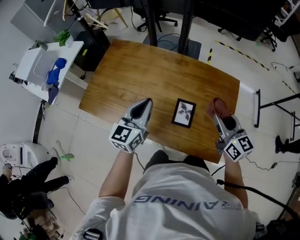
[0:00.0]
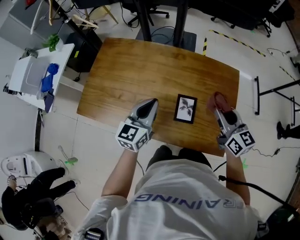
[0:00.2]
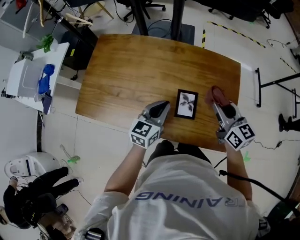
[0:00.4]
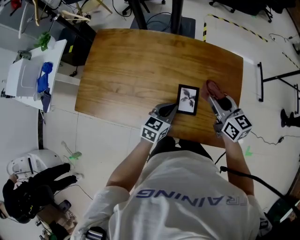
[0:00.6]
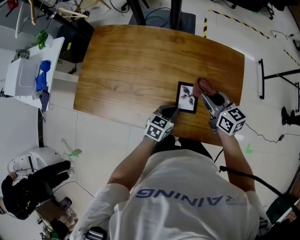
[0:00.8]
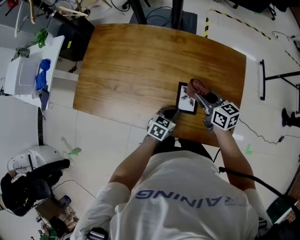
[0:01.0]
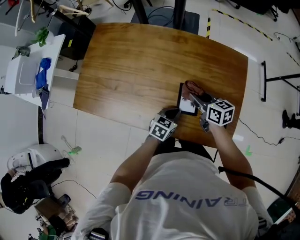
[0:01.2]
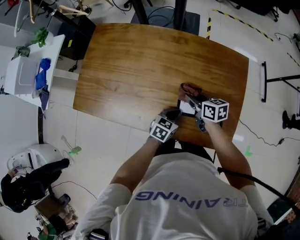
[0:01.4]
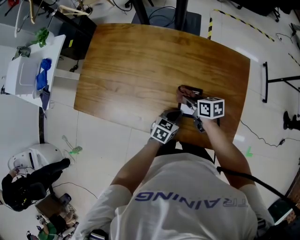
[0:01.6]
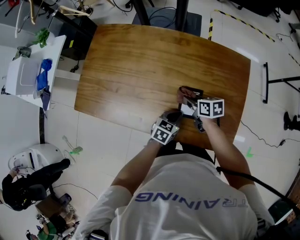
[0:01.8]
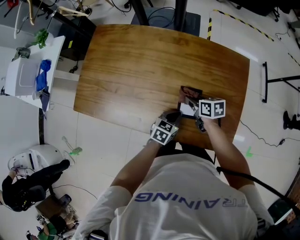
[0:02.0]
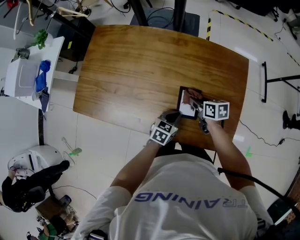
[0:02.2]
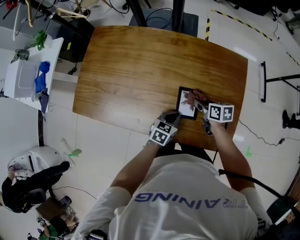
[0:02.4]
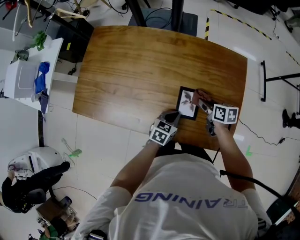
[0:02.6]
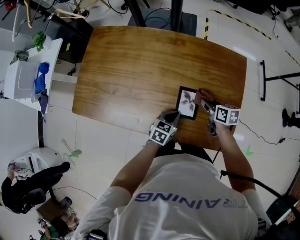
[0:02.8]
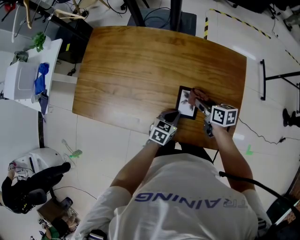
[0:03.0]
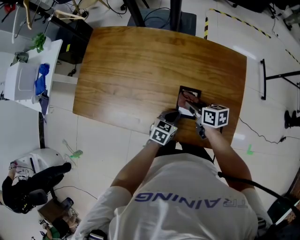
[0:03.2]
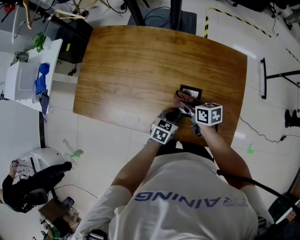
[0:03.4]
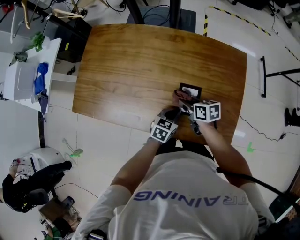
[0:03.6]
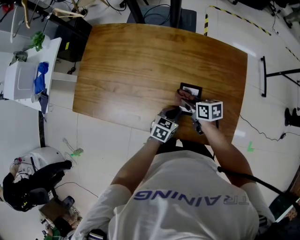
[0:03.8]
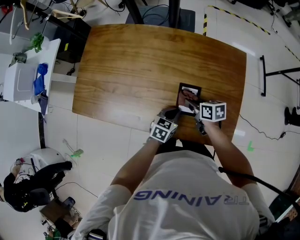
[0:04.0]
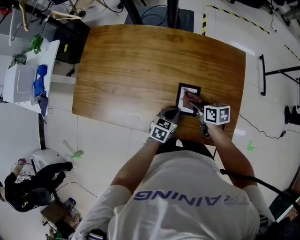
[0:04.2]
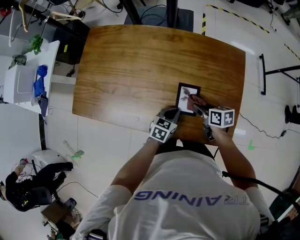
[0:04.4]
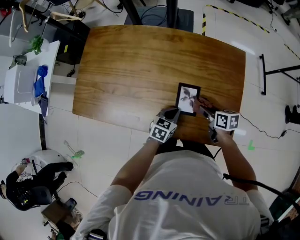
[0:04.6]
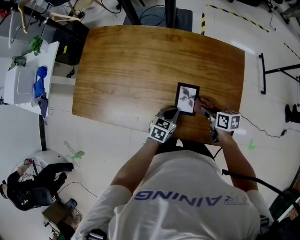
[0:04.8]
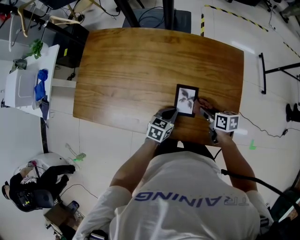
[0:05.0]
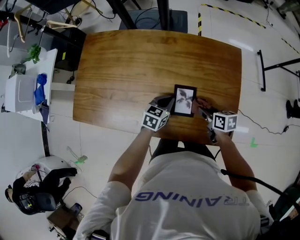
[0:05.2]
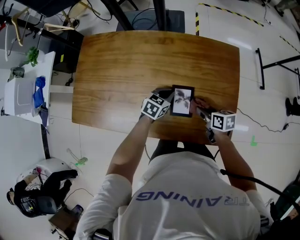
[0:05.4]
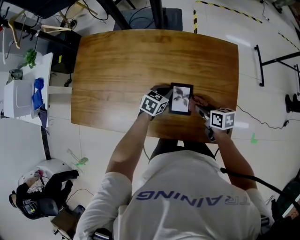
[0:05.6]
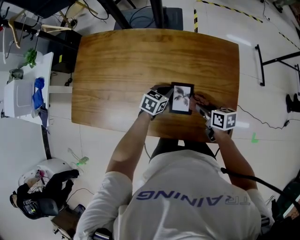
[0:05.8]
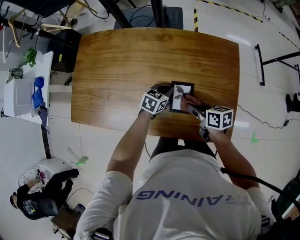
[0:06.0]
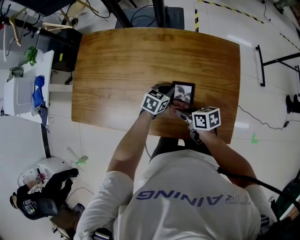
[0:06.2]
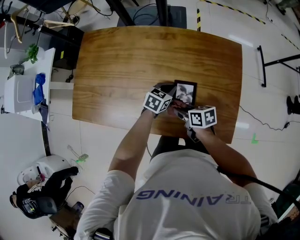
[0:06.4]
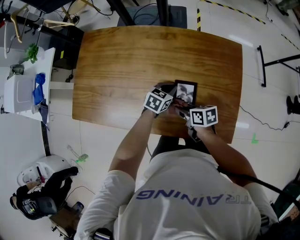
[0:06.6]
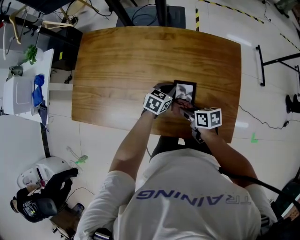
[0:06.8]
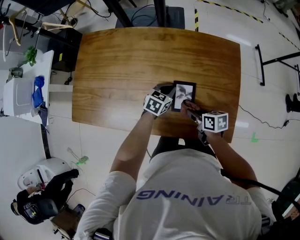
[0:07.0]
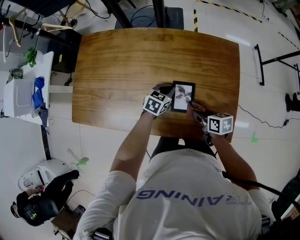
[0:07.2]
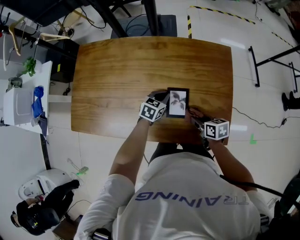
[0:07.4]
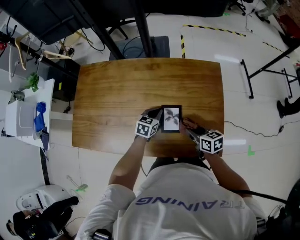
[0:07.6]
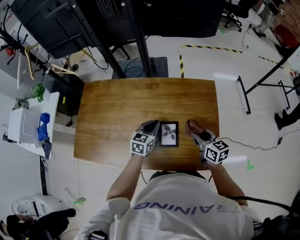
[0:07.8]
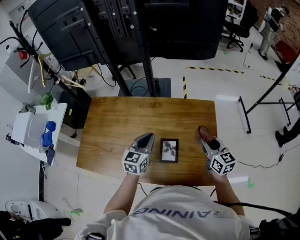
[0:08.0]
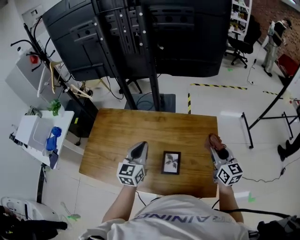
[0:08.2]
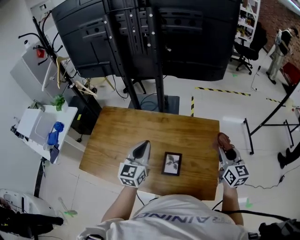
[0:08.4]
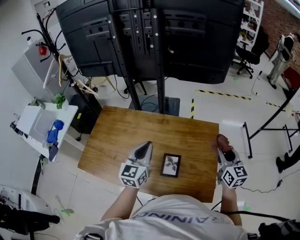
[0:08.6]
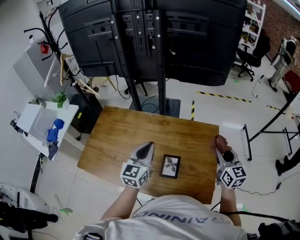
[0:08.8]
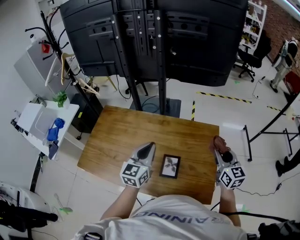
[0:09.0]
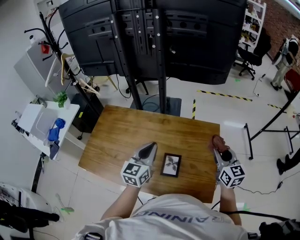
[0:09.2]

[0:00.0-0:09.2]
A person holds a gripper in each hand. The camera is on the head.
0:00.0 to 0:01.6: The right gripper shifts roughly 25 cm downward and to the left, and rotates about 40 degrees, while the left gripper heads downward and to the right, covering about 30 cm, and angles its fingers downward, by some 30 degrees.
0:01.6 to 0:03.0: The right gripper goes roughly 5 cm to the right.
0:03.0 to 0:04.6: The right gripper is displaced backward by approximately 5 cm, and travels to the left and back again, about 10 cm each way.
0:04.6 to 0:06.2: The right gripper moves to the left, roughly 10 cm. The left gripper heads forward, covering some 10 cm.
0:06.2 to 0:07.6: The right gripper is displaced to the right by approximately 10 cm.
0:07.6 to 0:09.2: The left gripper heads upward, covering some 30 cm, and tips its fingers upward by some 30 degrees. The right gripper moves upward and to the right, about 25 cm, and changes its angle by some 40 degrees.

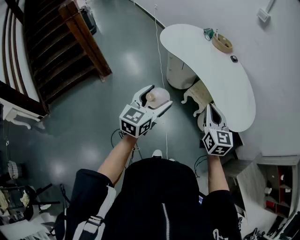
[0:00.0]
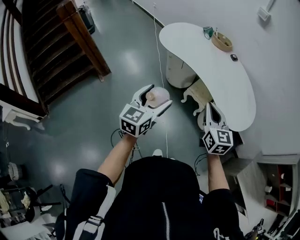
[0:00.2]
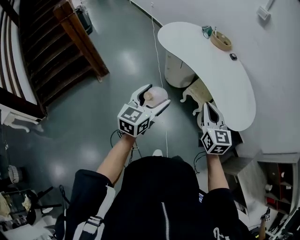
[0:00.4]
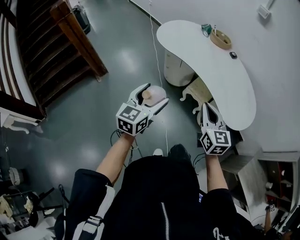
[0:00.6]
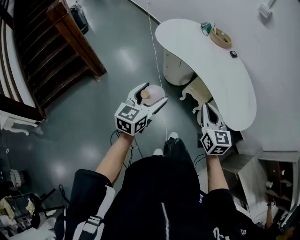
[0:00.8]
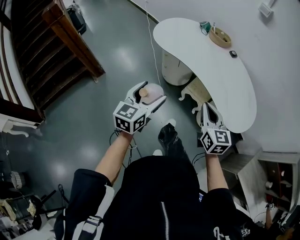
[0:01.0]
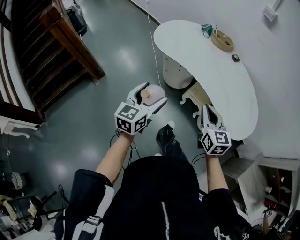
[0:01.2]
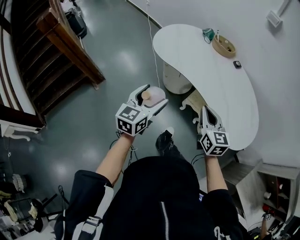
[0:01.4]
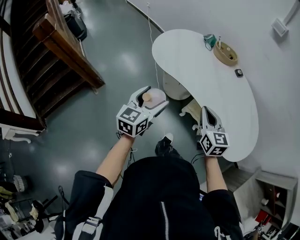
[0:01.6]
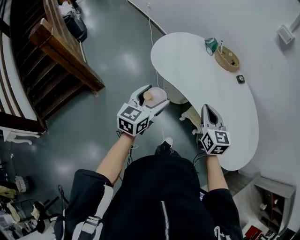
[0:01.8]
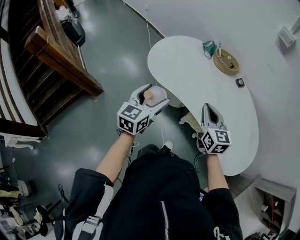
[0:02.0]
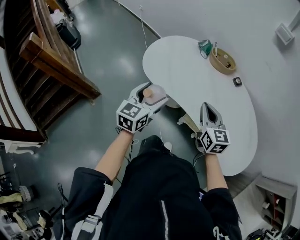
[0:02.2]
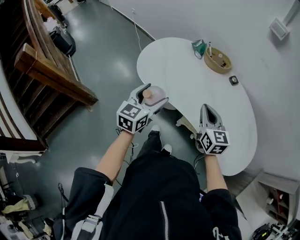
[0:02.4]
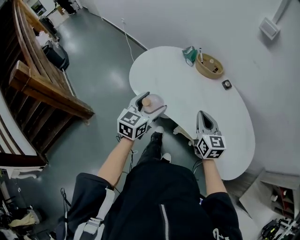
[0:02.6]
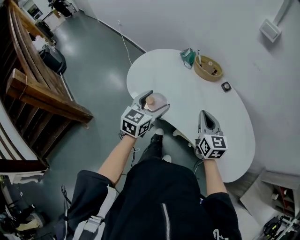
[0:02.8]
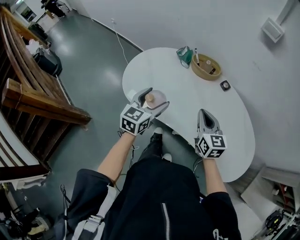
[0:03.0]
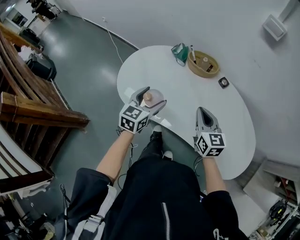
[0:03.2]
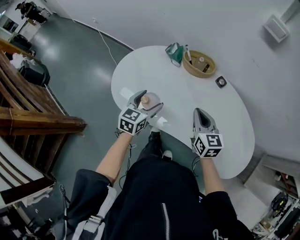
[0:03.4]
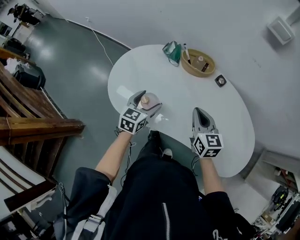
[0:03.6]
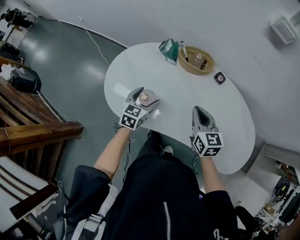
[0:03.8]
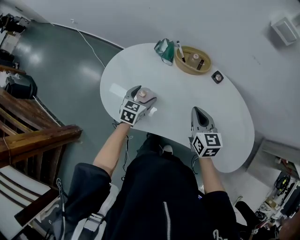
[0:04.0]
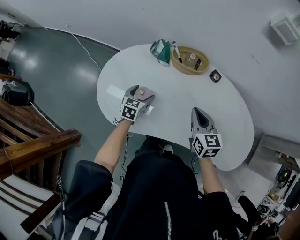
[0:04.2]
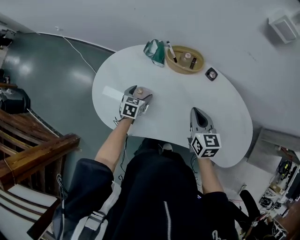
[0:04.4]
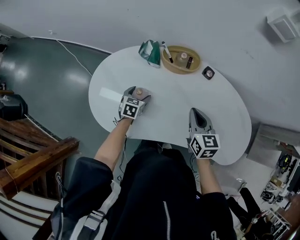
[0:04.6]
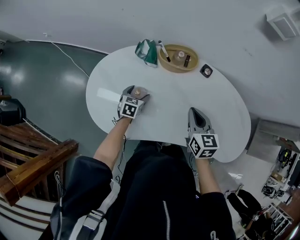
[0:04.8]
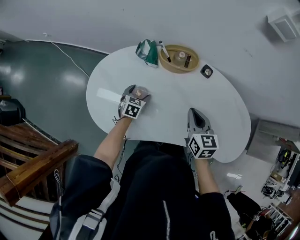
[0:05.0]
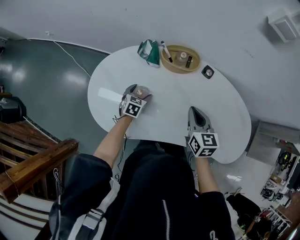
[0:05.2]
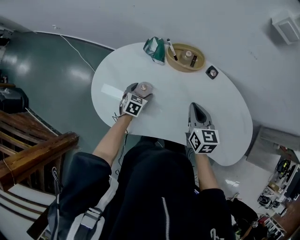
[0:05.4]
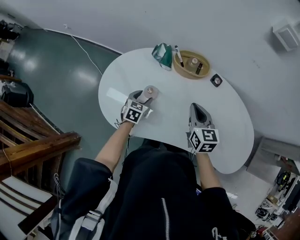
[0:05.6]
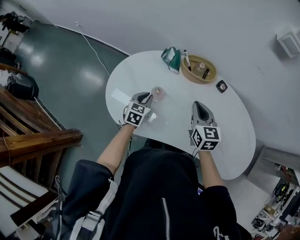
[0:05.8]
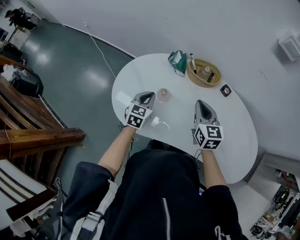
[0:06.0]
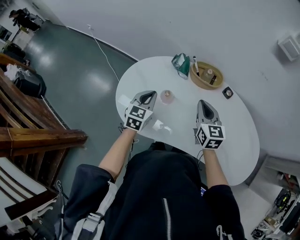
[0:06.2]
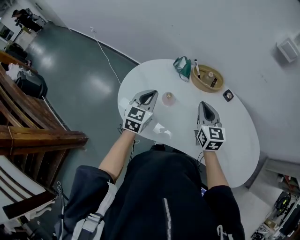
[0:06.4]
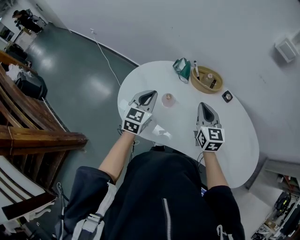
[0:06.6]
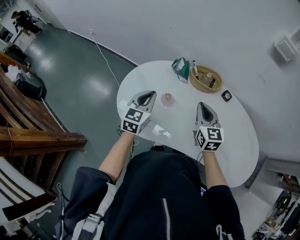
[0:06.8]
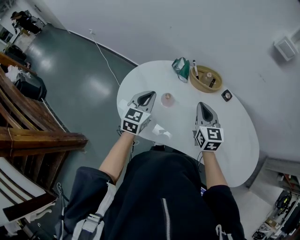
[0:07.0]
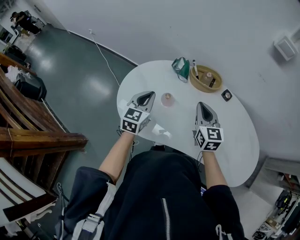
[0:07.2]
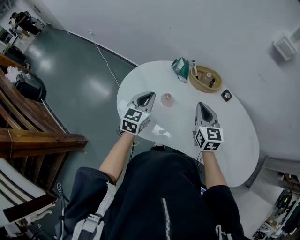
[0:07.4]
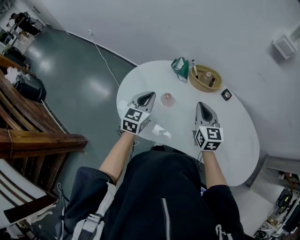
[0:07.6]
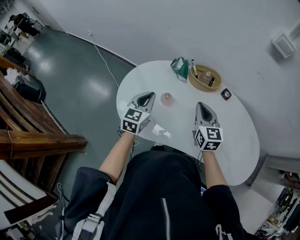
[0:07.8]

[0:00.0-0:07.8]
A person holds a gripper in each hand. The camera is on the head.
0:00.0 to 0:01.6: Both grippers move forward, roughly 25 cm.
0:01.6 to 0:03.2: Both grippers move forward, some 30 cm. The left gripper rotates some 20 degrees.
0:03.2 to 0:04.6: The right gripper goes about 10 cm forward and downward, and changes its angle by roughly 20 degrees; the left gripper heads downward and forward, covering some 30 cm, and changes its angle by about 30 degrees.
0:04.6 to 0:06.2: The left gripper heads upward, covering about 20 cm, swivels roughly 20 degrees, and closes its fingers. The right gripper is displaced to the left by roughly 10 cm.
0:06.2 to 0:07.8: The grippers move only a little.

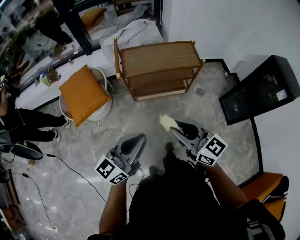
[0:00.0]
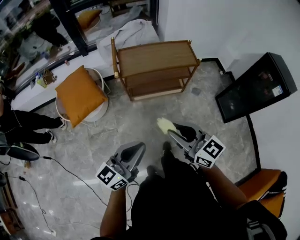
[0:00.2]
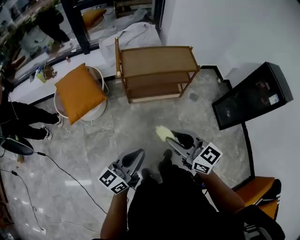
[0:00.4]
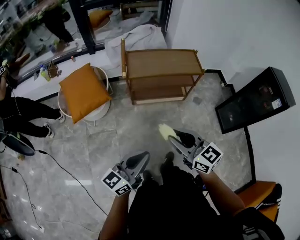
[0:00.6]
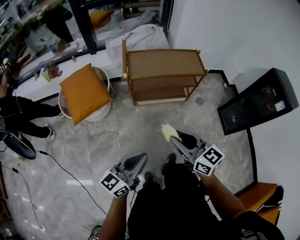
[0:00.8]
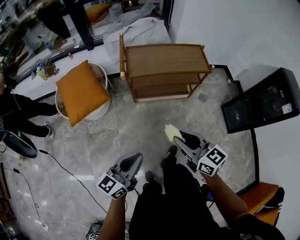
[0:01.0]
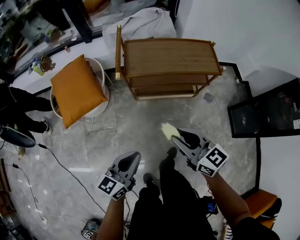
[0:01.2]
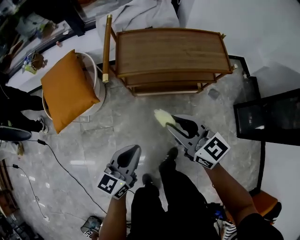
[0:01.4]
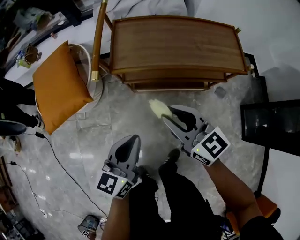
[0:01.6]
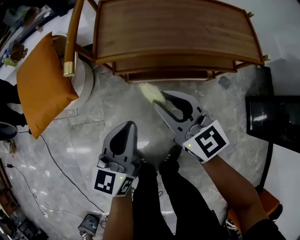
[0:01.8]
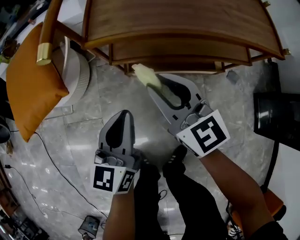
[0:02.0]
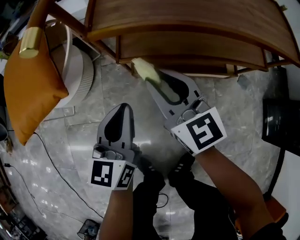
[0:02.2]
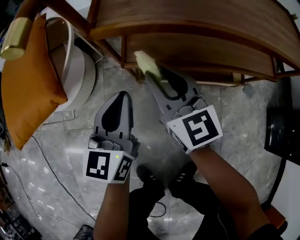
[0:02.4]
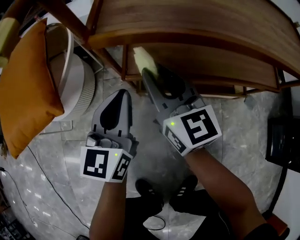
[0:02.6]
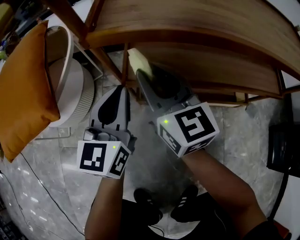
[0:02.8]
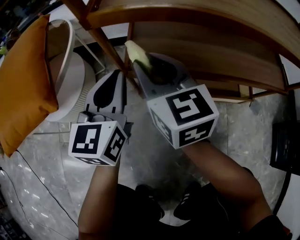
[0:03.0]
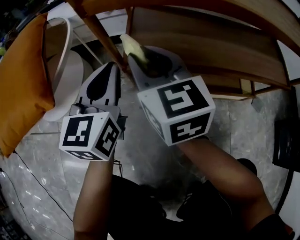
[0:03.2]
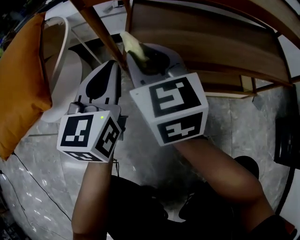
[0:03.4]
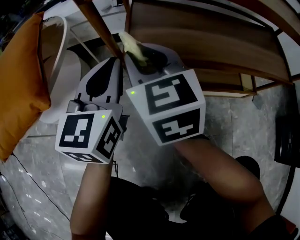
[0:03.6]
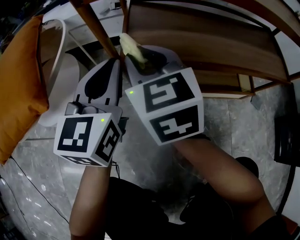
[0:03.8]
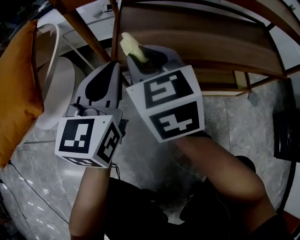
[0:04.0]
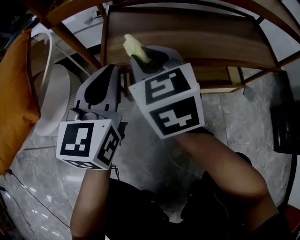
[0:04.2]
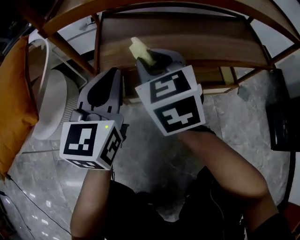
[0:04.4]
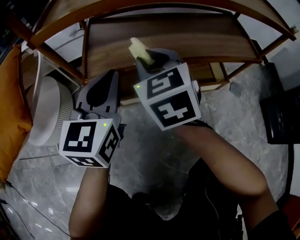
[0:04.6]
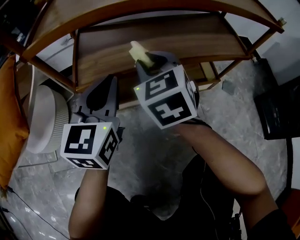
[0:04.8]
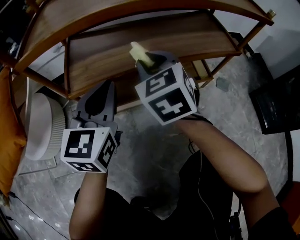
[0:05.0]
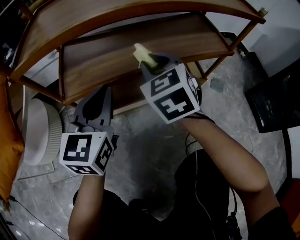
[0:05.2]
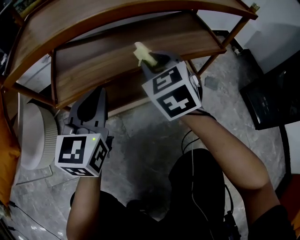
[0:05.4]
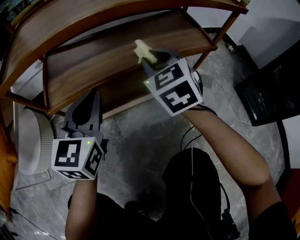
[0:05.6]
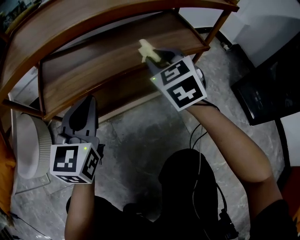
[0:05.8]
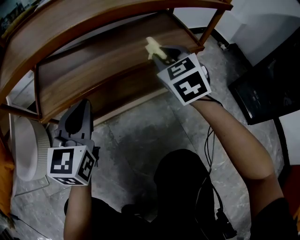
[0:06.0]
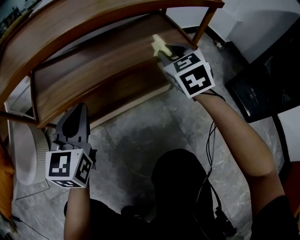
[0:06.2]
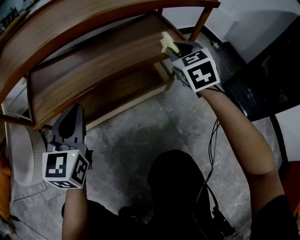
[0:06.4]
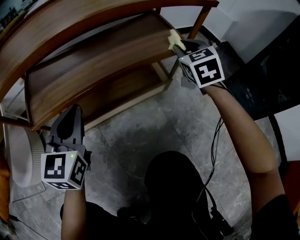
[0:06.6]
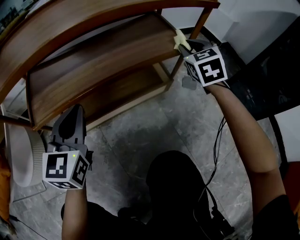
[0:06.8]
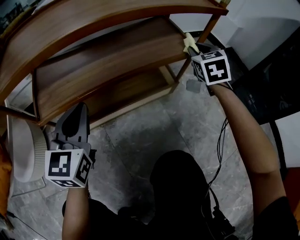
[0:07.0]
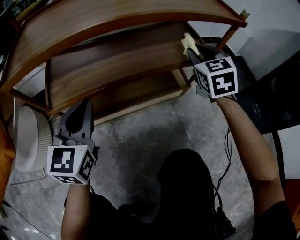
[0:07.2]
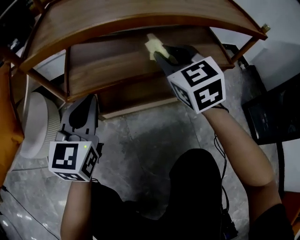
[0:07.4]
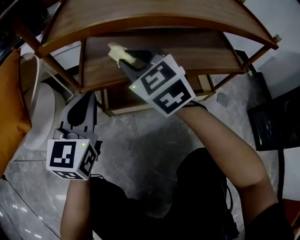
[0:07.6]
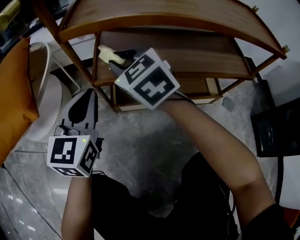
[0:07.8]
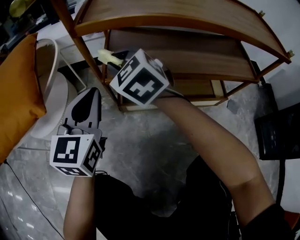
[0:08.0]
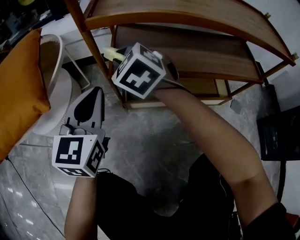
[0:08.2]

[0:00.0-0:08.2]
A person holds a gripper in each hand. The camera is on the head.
0:00.0 to 0:01.6: The right gripper is displaced forward and downward by some 35 cm; the left gripper travels downward and forward by about 35 cm, and changes its angle by roughly 30 degrees.
0:01.6 to 0:03.2: The left gripper travels forward and downward by about 35 cm, and changes its angle by about 20 degrees, while the right gripper is displaced downward, forward and to the left by about 35 cm.
0:03.2 to 0:05.0: The grippers both shift to the right by about 20 cm. The right gripper turns by approximately 30 degrees.
0:05.0 to 0:06.6: The left gripper shifts approximately 10 cm to the right. Meanwhile the right gripper moves to the right, about 30 cm.
0:06.6 to 0:08.2: The left gripper shifts by roughly 25 cm. The right gripper ends up approximately 60 cm from where it was, and changes its angle by about 50 degrees.
